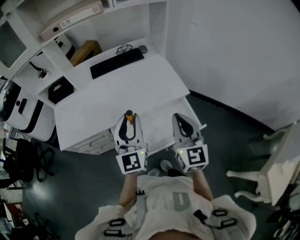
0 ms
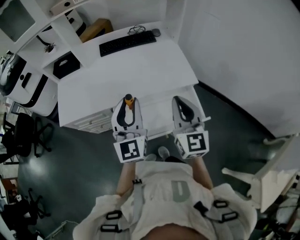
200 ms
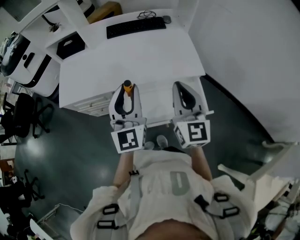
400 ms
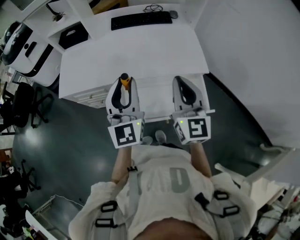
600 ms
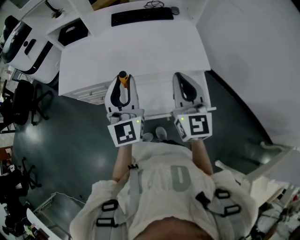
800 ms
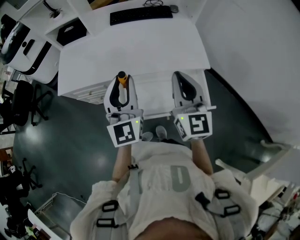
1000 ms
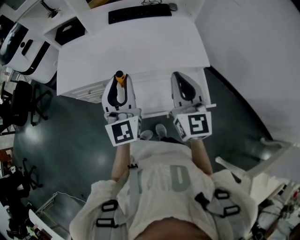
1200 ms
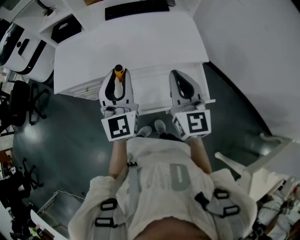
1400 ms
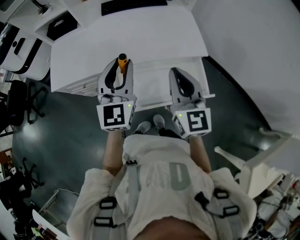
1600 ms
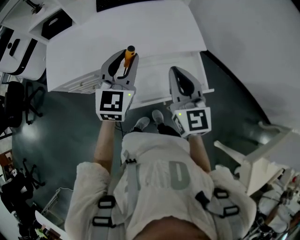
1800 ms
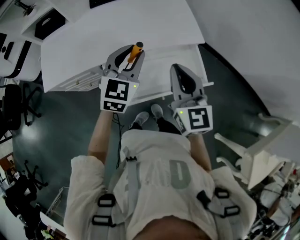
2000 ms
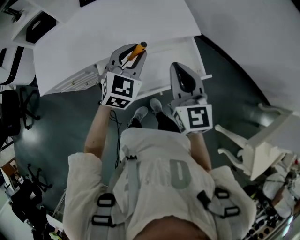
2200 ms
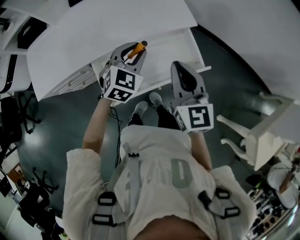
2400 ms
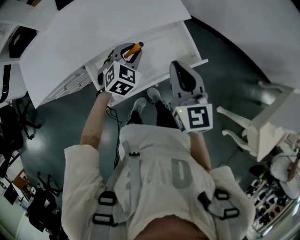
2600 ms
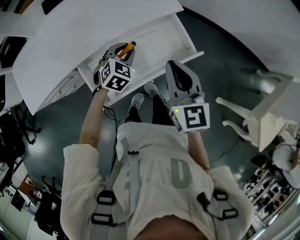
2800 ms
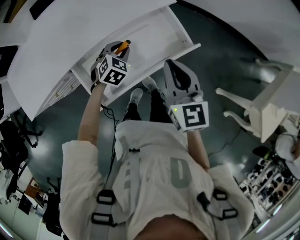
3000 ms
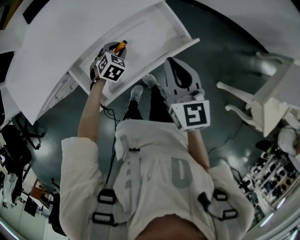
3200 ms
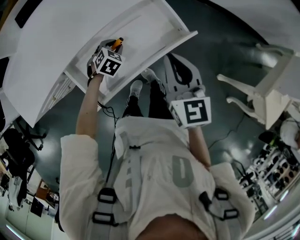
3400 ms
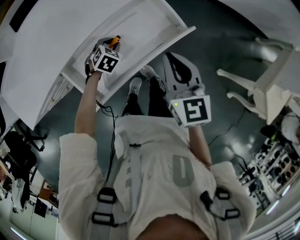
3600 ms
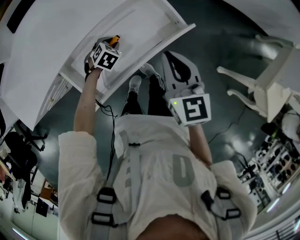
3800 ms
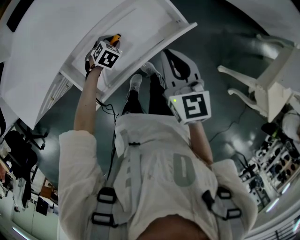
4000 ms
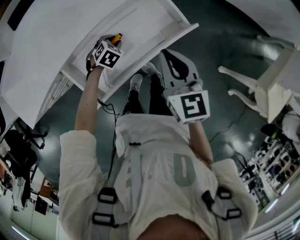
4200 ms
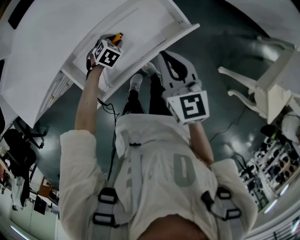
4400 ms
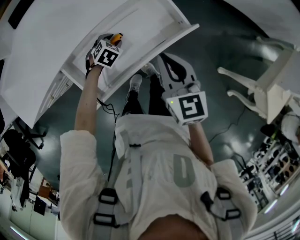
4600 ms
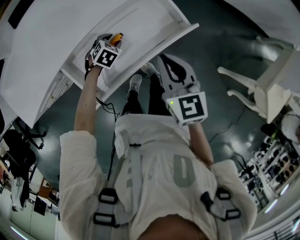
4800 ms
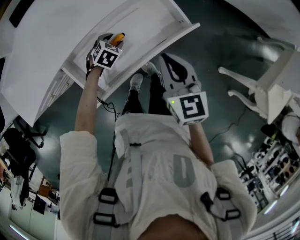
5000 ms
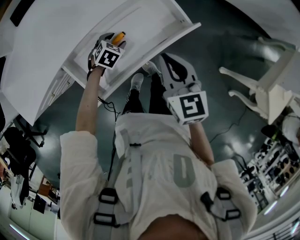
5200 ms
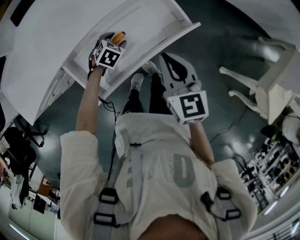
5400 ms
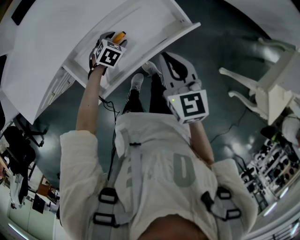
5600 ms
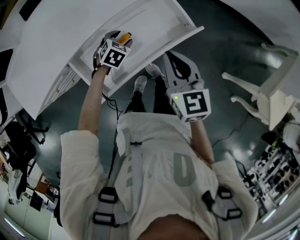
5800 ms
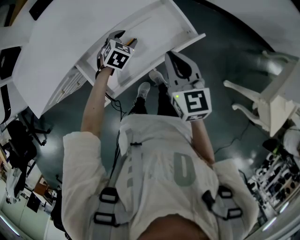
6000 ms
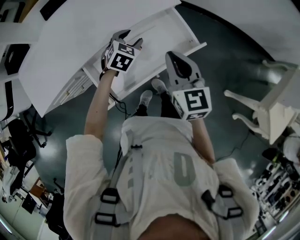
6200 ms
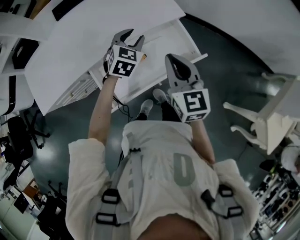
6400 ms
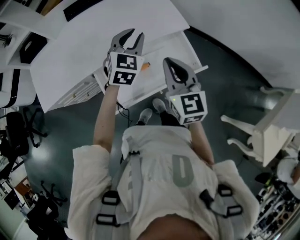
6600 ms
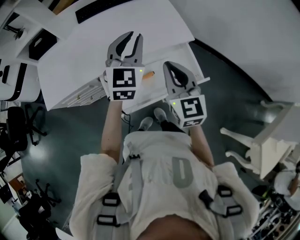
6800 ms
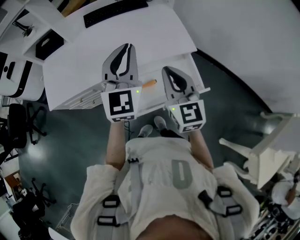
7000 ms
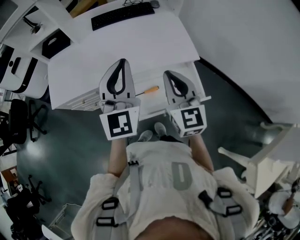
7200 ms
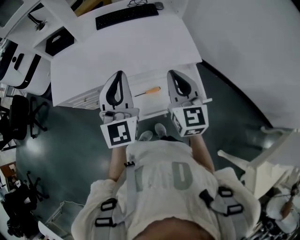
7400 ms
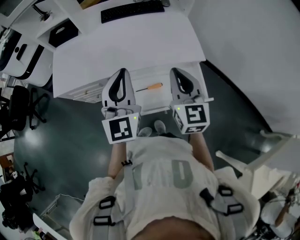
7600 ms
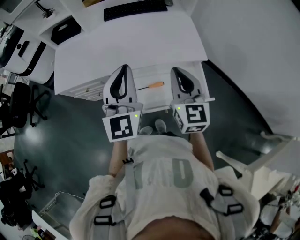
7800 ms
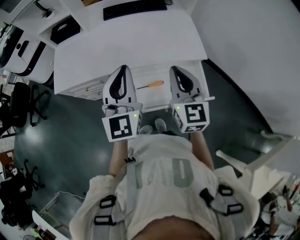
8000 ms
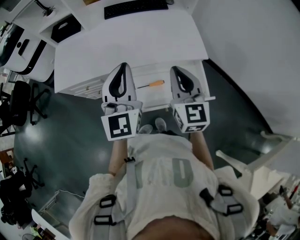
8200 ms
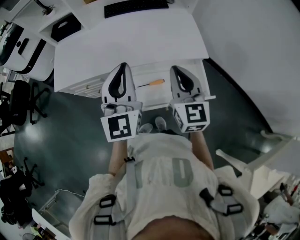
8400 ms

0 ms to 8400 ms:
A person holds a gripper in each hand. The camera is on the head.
0 ms to 1400 ms: The two grippers go about 5 cm to the left.
1400 ms to 2800 ms: The left gripper travels downward by approximately 25 cm, and angles its fingers downward, by some 50 degrees. The right gripper travels downward by some 10 cm, and changes its angle by approximately 20 degrees.
2800 ms to 4200 ms: The left gripper moves downward, about 15 cm, and turns by roughly 20 degrees, while the right gripper travels downward by approximately 5 cm.
4200 ms to 5600 ms: The left gripper opens its fingers.
5600 ms to 7000 ms: The left gripper travels upward by about 50 cm, points its fingers about 60 degrees further upward, and closes, while the right gripper goes roughly 15 cm upward, and rotates some 30 degrees.
7000 ms to 8400 ms: The left gripper moves backward and to the left, approximately 10 cm.

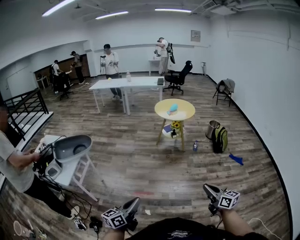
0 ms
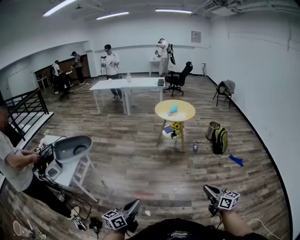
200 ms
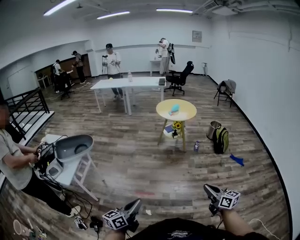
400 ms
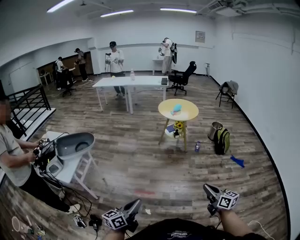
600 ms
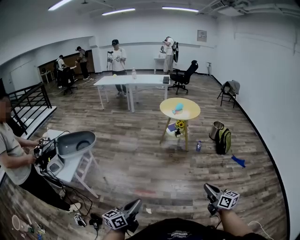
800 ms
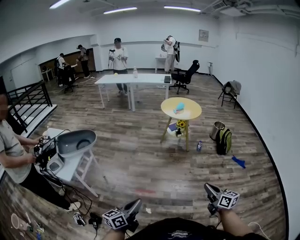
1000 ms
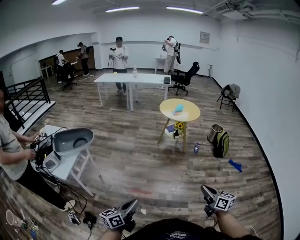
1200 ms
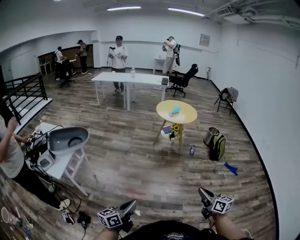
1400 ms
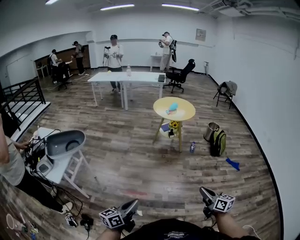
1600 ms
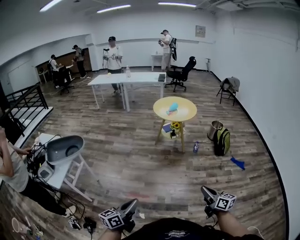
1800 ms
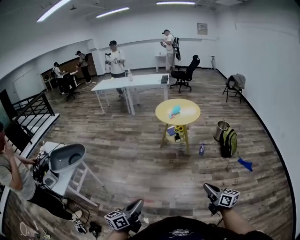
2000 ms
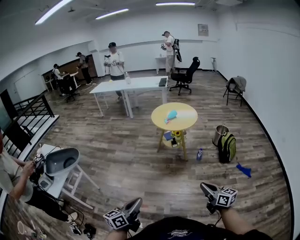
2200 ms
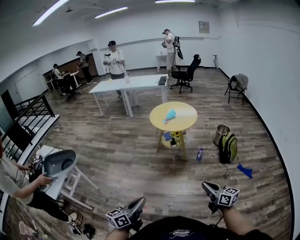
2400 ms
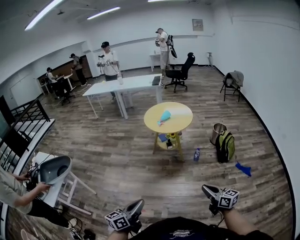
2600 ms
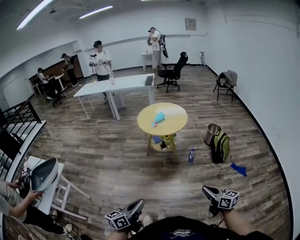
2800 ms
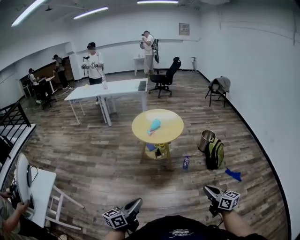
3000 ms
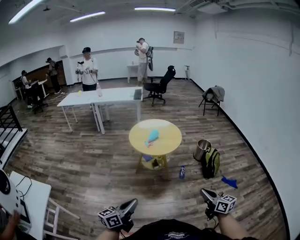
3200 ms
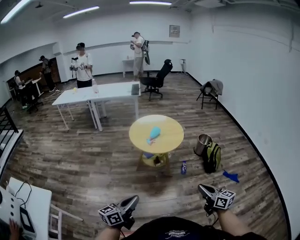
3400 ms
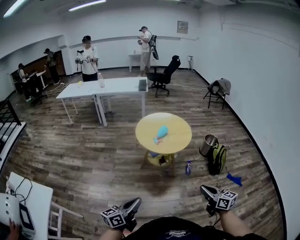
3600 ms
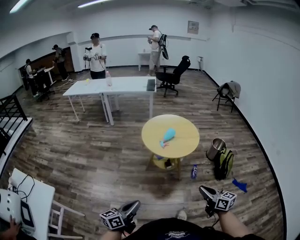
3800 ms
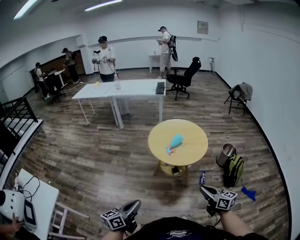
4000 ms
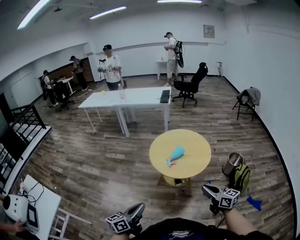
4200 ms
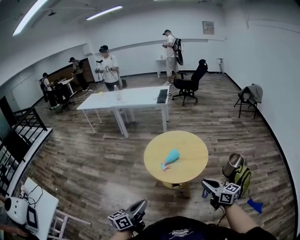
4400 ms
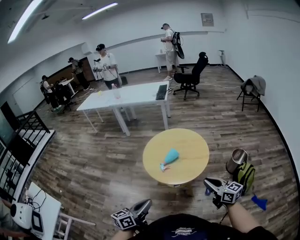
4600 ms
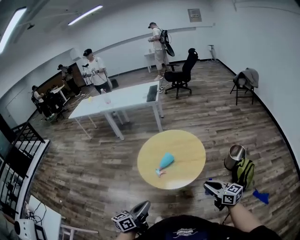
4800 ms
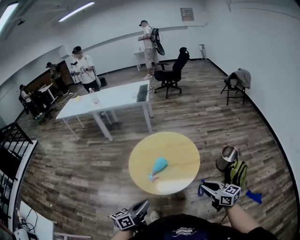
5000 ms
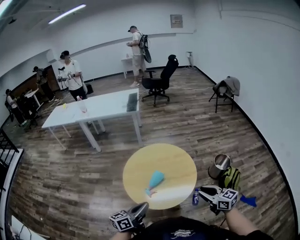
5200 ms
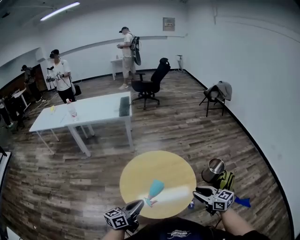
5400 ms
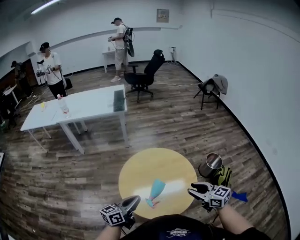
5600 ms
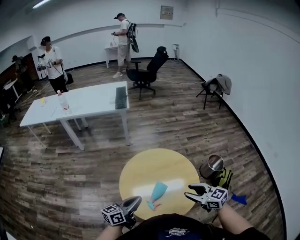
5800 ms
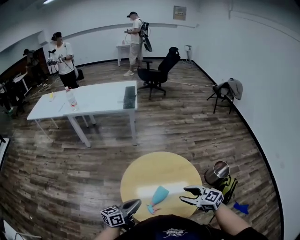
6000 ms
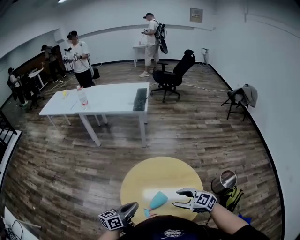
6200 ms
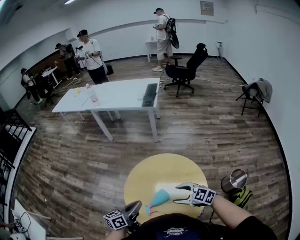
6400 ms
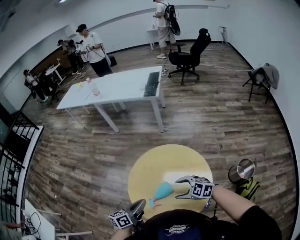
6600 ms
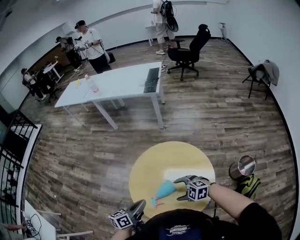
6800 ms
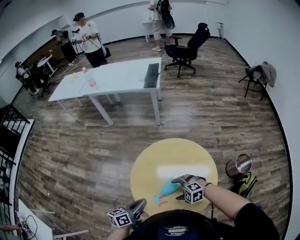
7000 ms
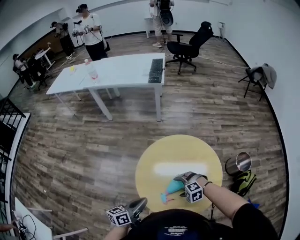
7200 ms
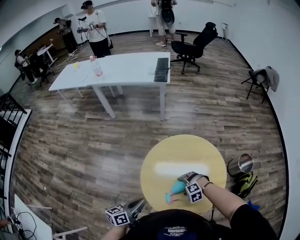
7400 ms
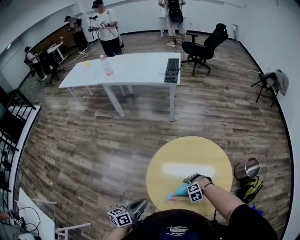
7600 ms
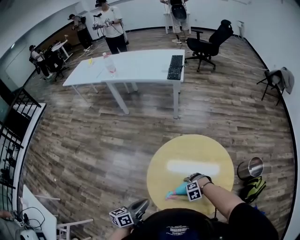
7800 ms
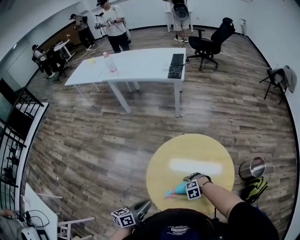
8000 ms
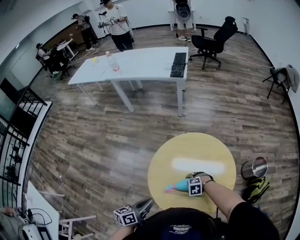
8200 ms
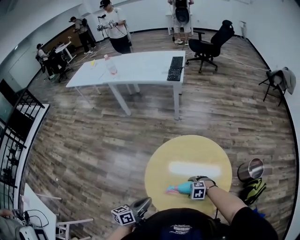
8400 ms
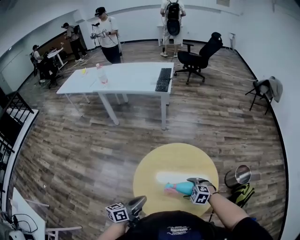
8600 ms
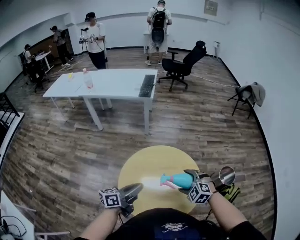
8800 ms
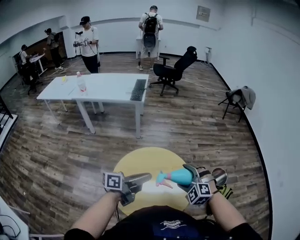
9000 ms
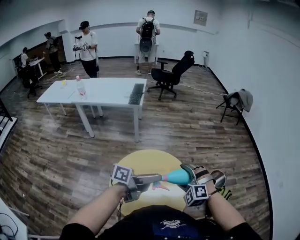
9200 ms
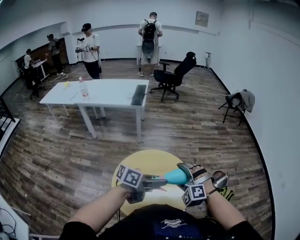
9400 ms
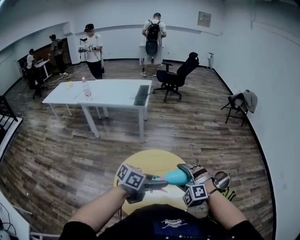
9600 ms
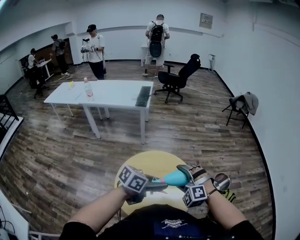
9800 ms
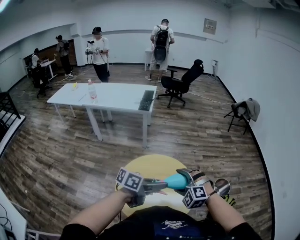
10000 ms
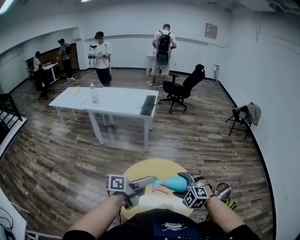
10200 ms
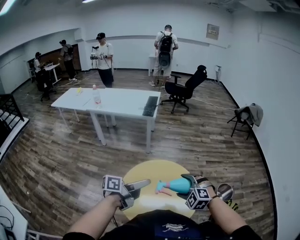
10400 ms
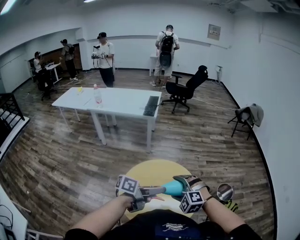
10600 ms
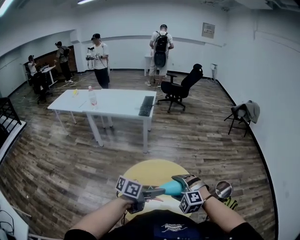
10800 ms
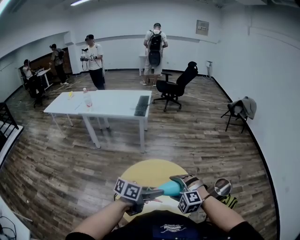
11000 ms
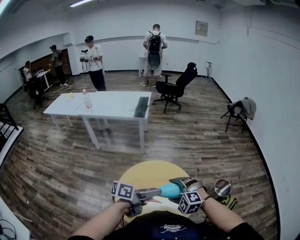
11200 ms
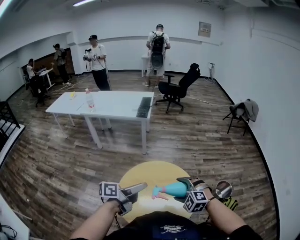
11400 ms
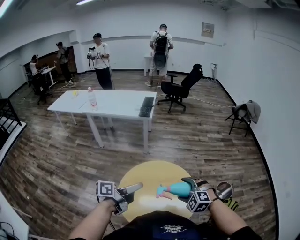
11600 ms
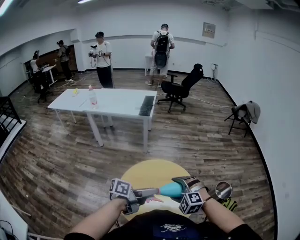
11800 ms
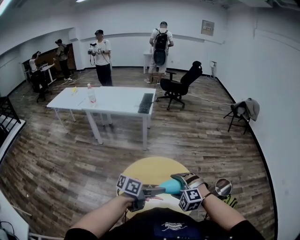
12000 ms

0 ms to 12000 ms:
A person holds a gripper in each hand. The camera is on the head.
0 ms to 1600 ms: The grippers both shift forward by about 10 cm.
1600 ms to 3000 ms: The two grippers travel together, forward and to the right, roughly 50 cm.
3000 ms to 4400 ms: The pair of grippers is taken forward, approximately 50 cm.
4400 ms to 6000 ms: Both grippers are carried forward, approximately 50 cm. The left gripper turns by about 20 degrees. Meanwhile the right gripper swivels about 20 degrees, and opens.
6000 ms to 7600 ms: The left gripper ends up roughly 10 cm from where it was, and swivels roughly 20 degrees, while the right gripper is displaced downward by roughly 30 cm, tilts its fingers approximately 60 degrees downward, and opens its fingers.
7600 ms to 9000 ms: The left gripper shifts by approximately 30 cm, and turns by approximately 30 degrees; the right gripper heads upward, covering some 30 cm, and angles its fingers upward, by approximately 40 degrees.
9000 ms to 10400 ms: The left gripper reaches roughly 10 cm to the right, then returns, and opens its fingers.
10400 ms to 12000 ms: The left gripper goes left and right, roughly 10 cm each way, reversing 2 times, and rotates about 20 degrees.

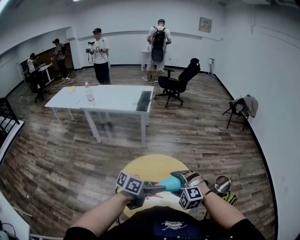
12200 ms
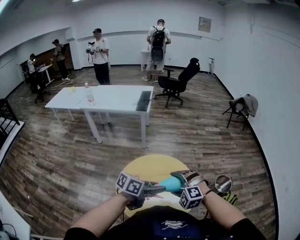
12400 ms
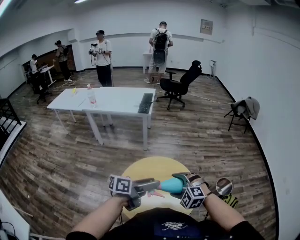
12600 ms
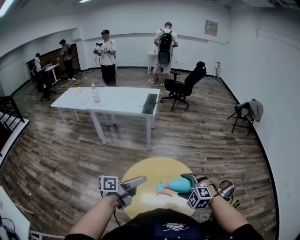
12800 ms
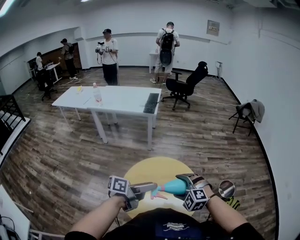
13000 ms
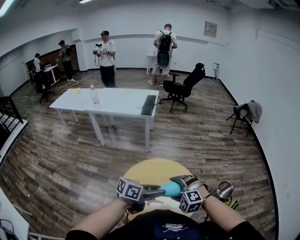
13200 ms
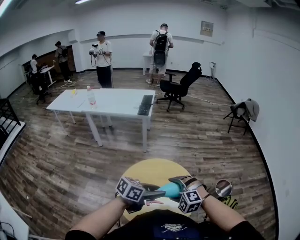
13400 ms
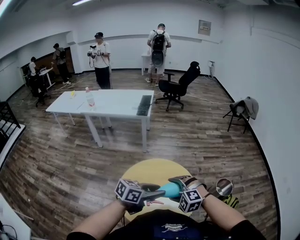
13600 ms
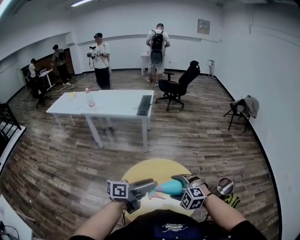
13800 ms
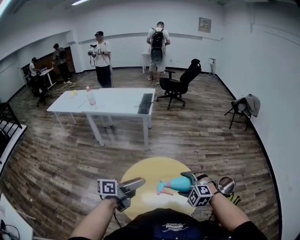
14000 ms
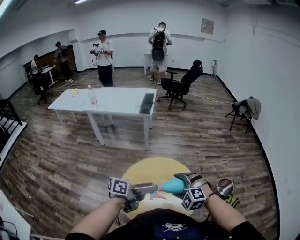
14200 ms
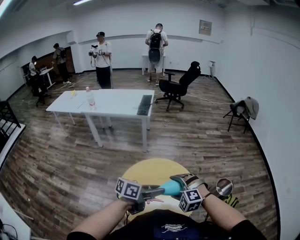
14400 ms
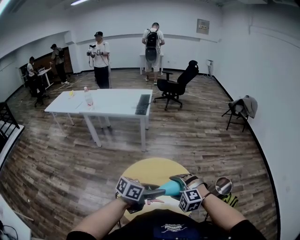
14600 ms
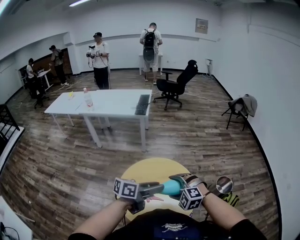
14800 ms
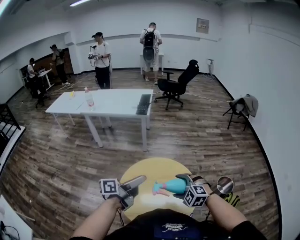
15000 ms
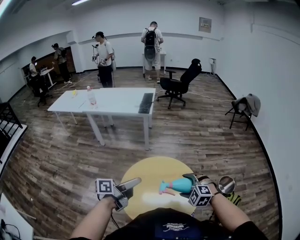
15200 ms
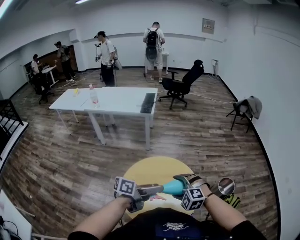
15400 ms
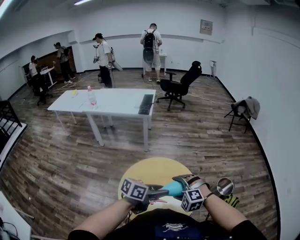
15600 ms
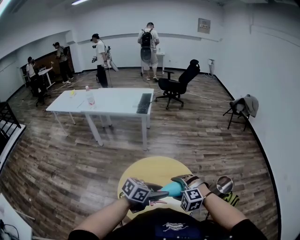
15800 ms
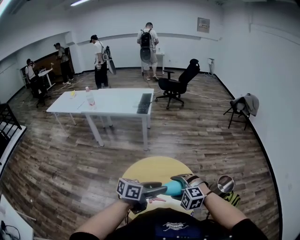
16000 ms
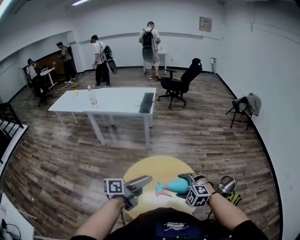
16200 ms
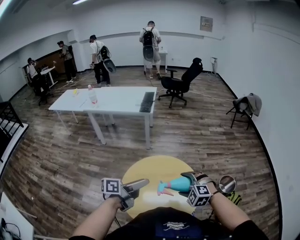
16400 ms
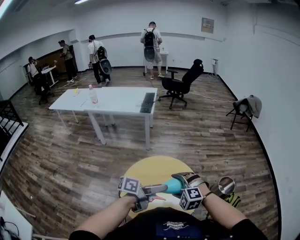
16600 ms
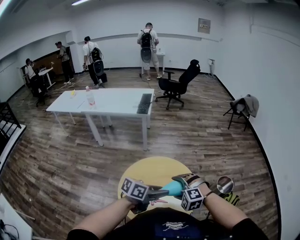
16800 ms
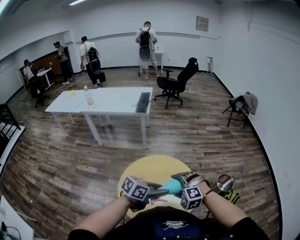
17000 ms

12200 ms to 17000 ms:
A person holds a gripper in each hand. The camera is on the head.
12200 ms to 13800 ms: The left gripper moves left and right over roughly 10 cm, changing direction 2 times, and rotates about 20 degrees.
13800 ms to 15400 ms: The left gripper swings left and right, roughly 15 cm each way, with 3 reversals, while the right gripper swings left and right, about 5 cm each way, with 3 reversals.
15400 ms to 17000 ms: The left gripper moves left and right over approximately 10 cm, changing direction 2 times, and changes its angle by some 30 degrees.
